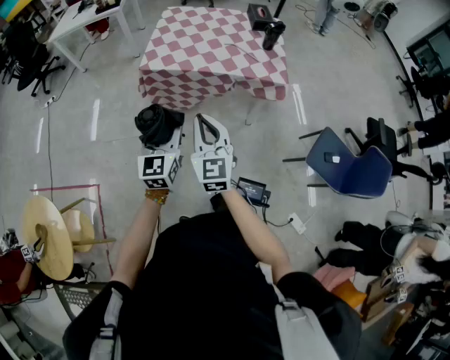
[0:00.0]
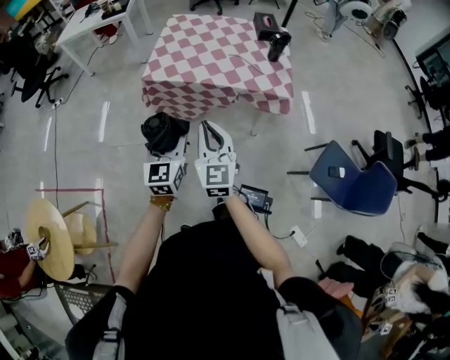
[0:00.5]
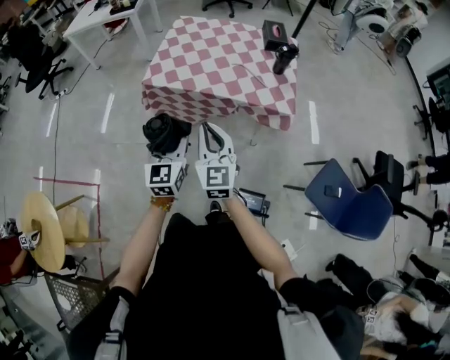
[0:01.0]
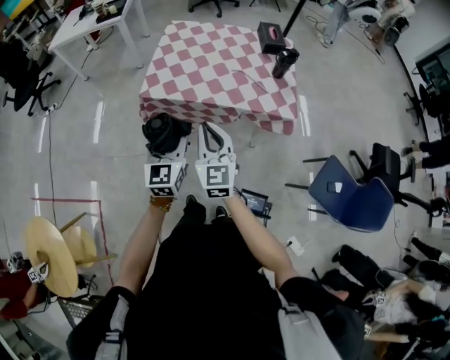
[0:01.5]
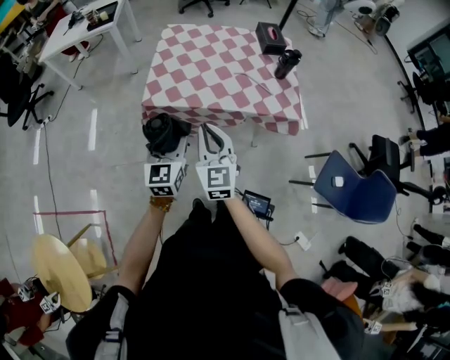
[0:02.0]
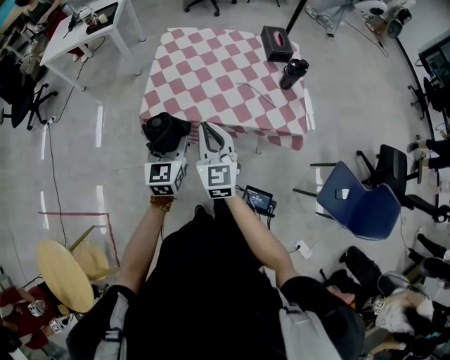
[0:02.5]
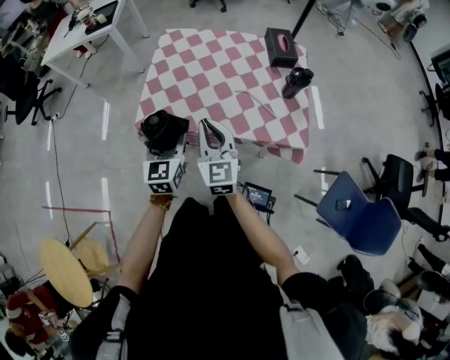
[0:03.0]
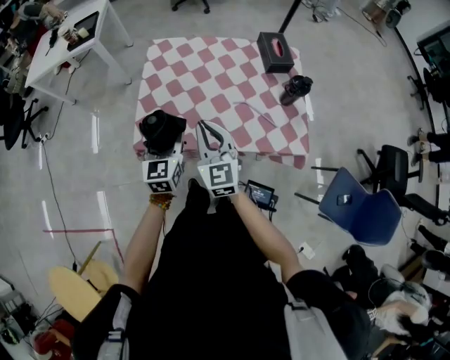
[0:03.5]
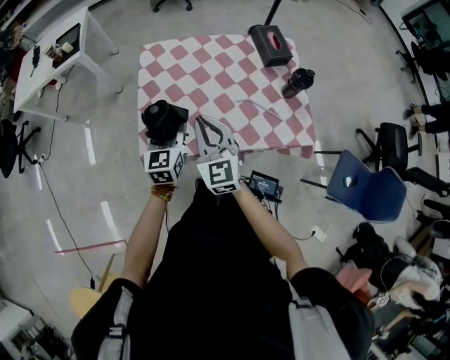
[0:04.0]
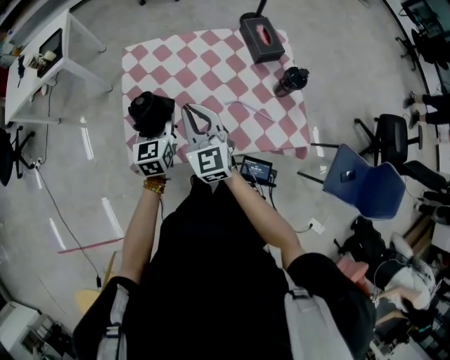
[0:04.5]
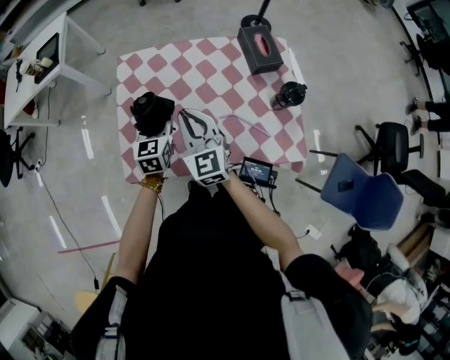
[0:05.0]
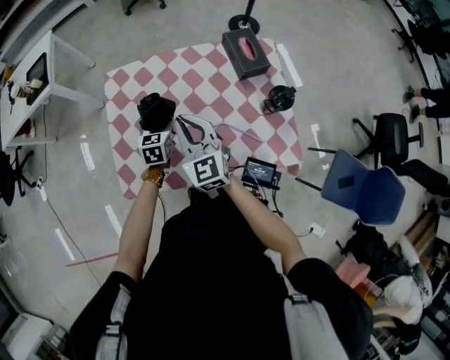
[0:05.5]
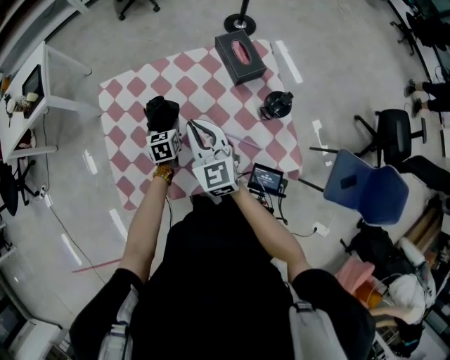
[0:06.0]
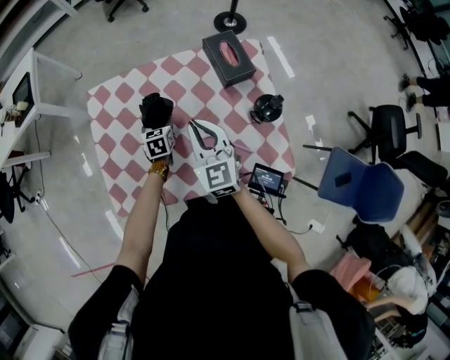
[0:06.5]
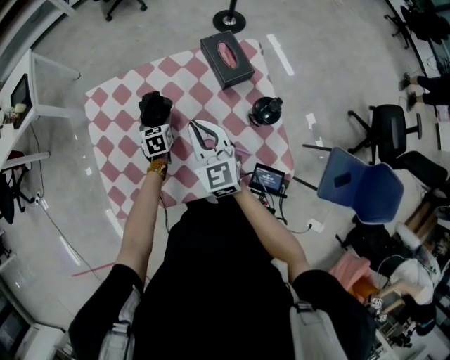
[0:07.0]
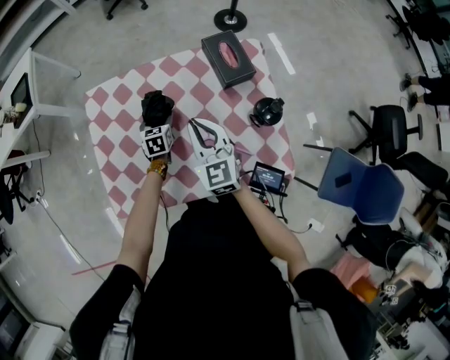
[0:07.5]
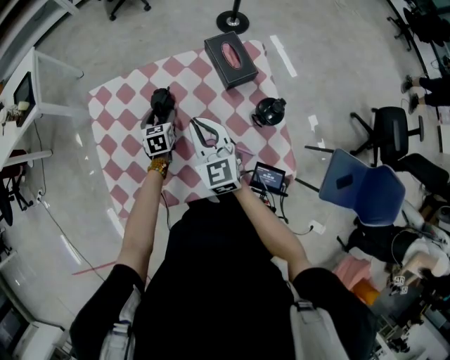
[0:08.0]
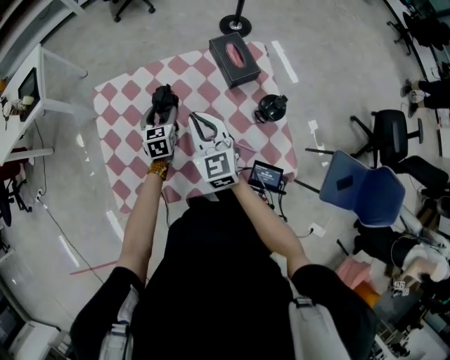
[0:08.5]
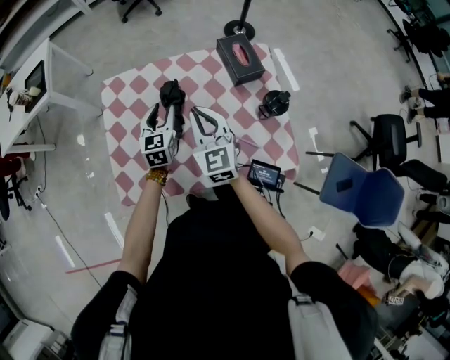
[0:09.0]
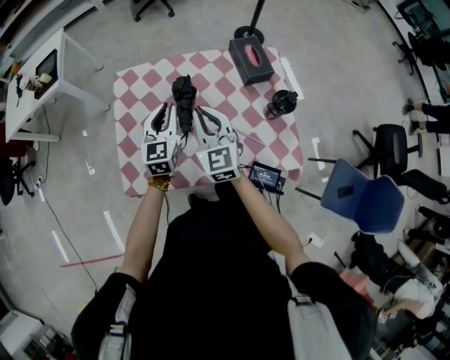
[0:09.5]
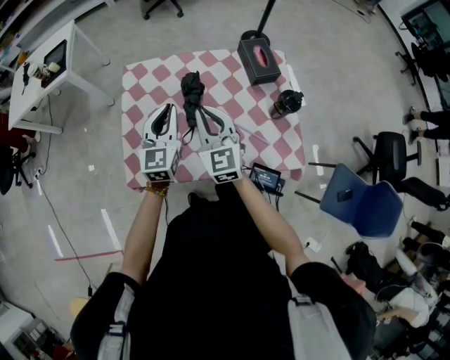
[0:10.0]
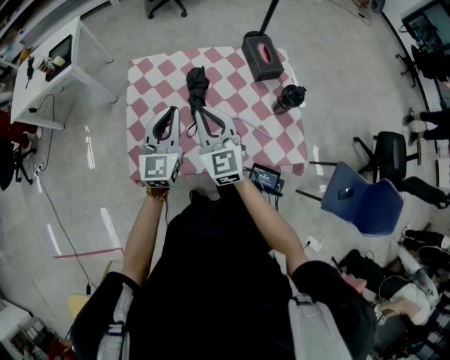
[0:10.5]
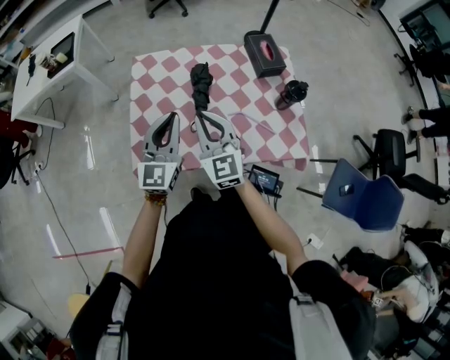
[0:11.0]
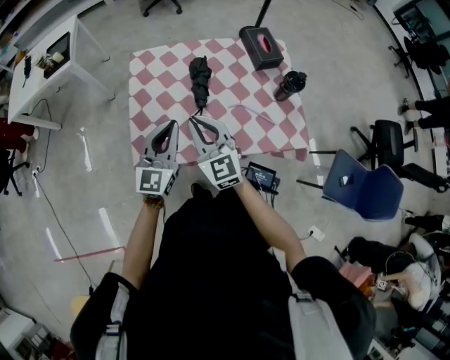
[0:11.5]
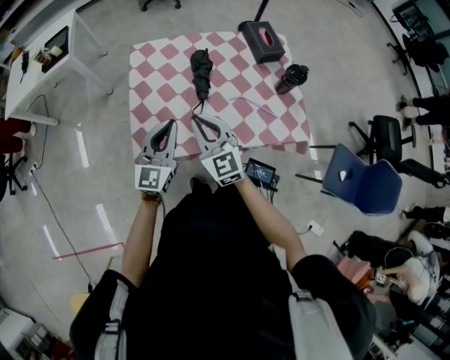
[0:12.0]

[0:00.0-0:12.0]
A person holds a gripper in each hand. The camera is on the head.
0:00.0 to 0:02.0: The two grippers go some 20 cm forward.
0:02.0 to 0:04.0: Both grippers travel together forward, some 30 cm.
0:04.0 to 0:06.0: The left gripper shifts about 35 cm forward, downward and to the right, and turns by roughly 30 degrees; the right gripper goes some 25 cm forward and to the right.
0:06.0 to 0:08.0: The left gripper shifts about 5 cm forward. Meanwhile the right gripper changes place by approximately 5 cm.
0:08.0 to 0:10.0: The right gripper shifts roughly 15 cm to the left, backward and upward; the left gripper goes some 30 cm upward and backward, tilts its fingers some 30 degrees upward, and closes its fingers.
0:10.0 to 0:12.0: Both grippers travel together backward and to the left, approximately 15 cm.

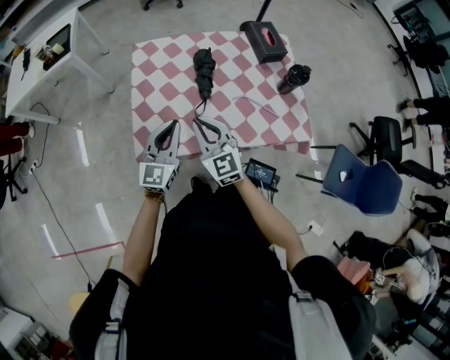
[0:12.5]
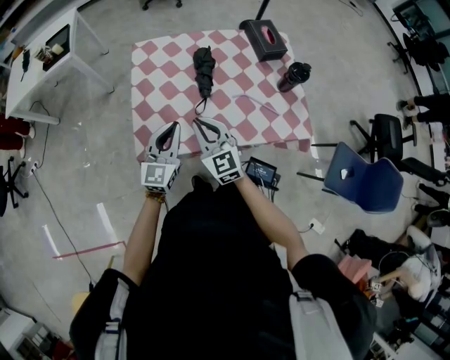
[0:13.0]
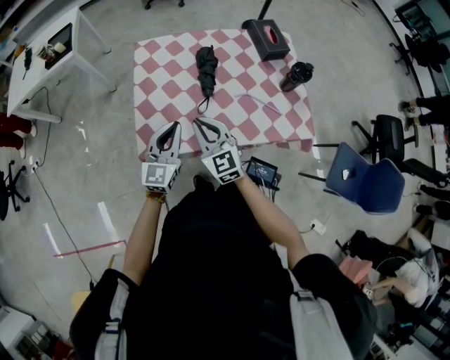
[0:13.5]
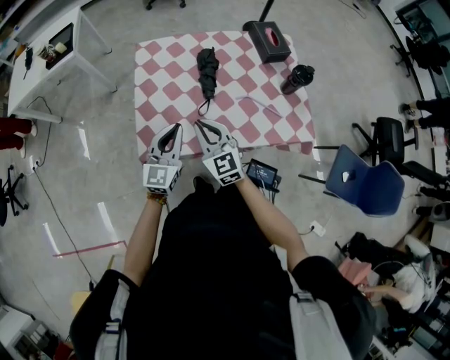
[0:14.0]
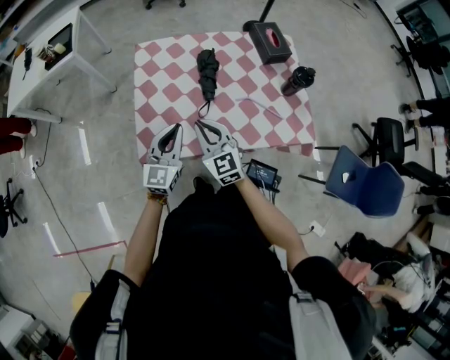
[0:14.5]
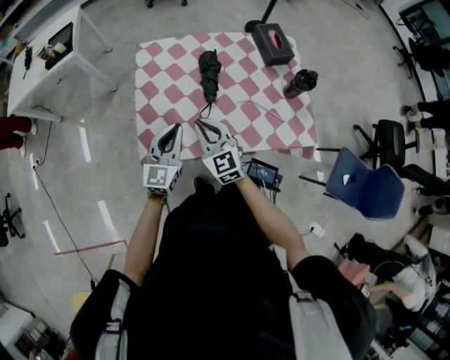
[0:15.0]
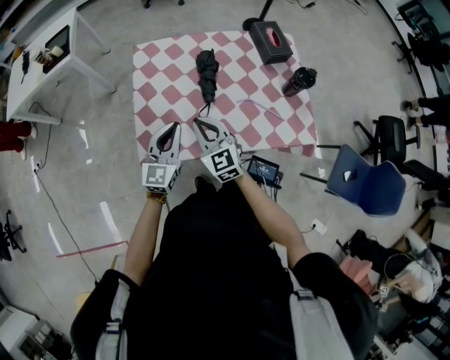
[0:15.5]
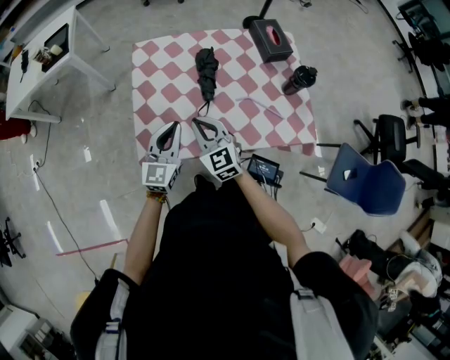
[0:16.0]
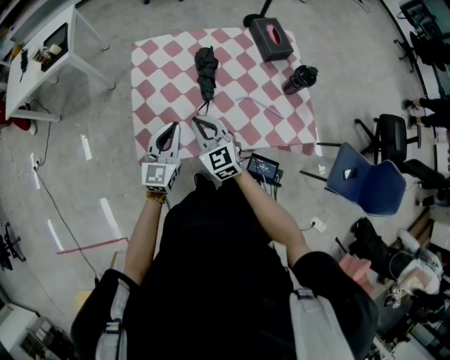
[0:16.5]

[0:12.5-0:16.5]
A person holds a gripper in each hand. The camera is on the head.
0:12.5 to 0:16.5: The grippers make only small movements.

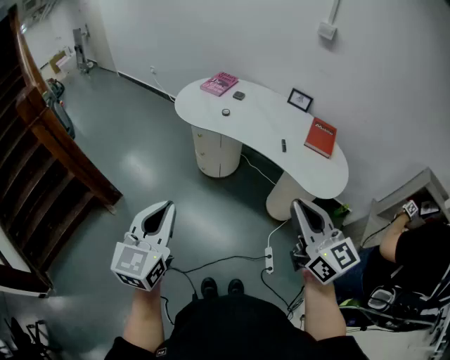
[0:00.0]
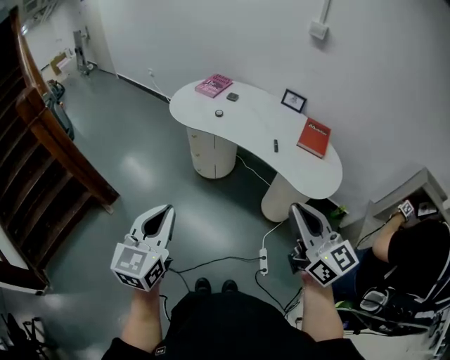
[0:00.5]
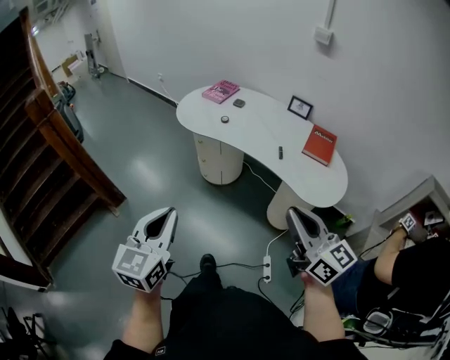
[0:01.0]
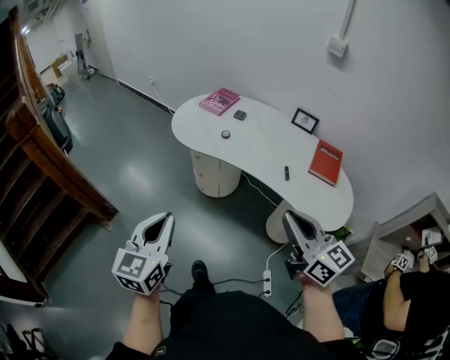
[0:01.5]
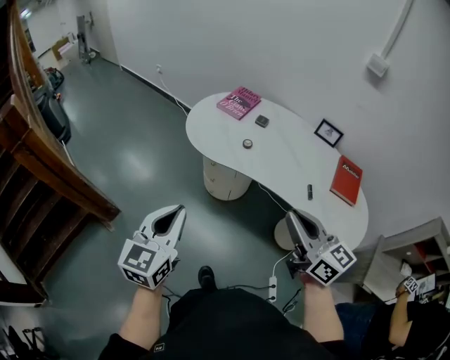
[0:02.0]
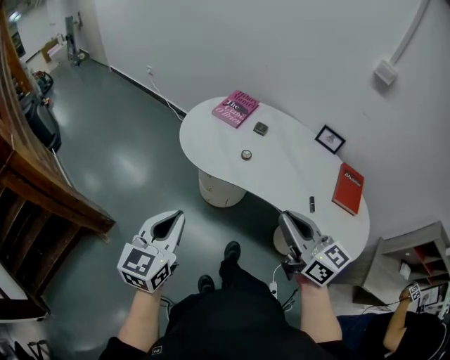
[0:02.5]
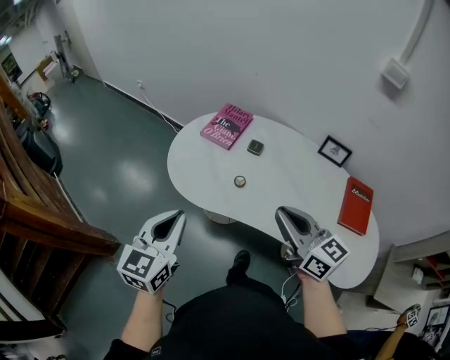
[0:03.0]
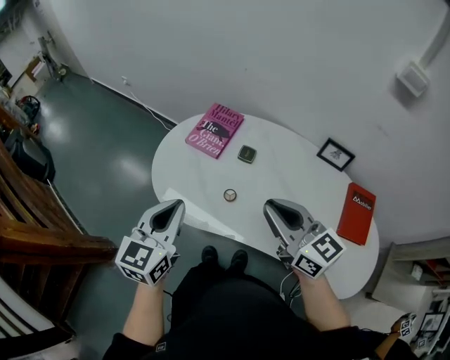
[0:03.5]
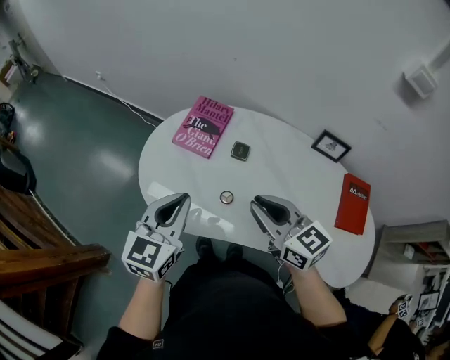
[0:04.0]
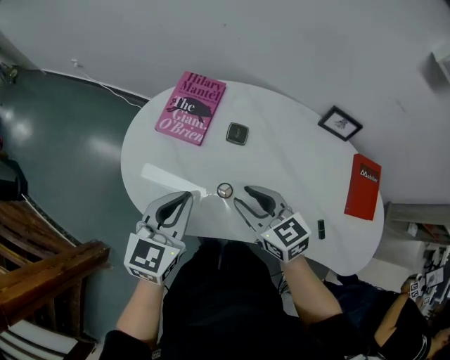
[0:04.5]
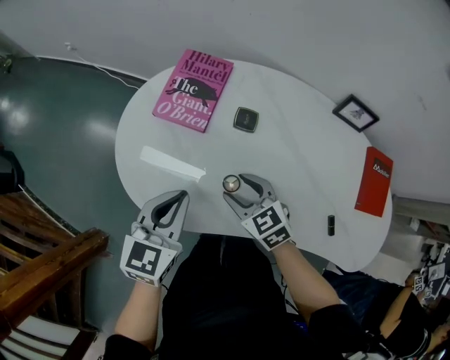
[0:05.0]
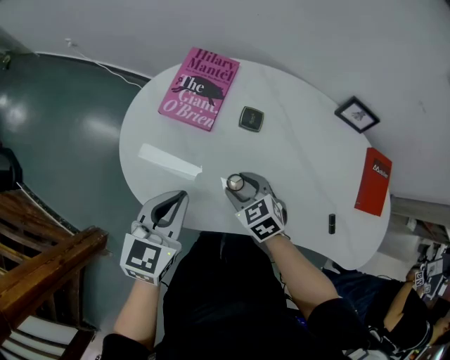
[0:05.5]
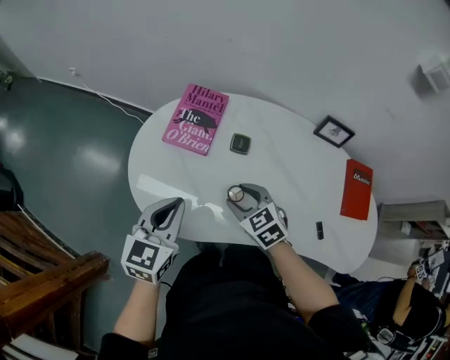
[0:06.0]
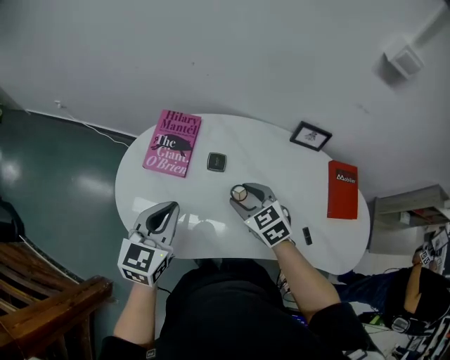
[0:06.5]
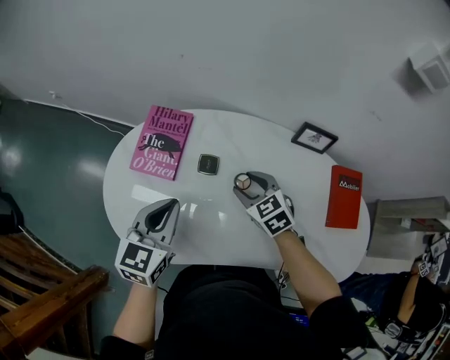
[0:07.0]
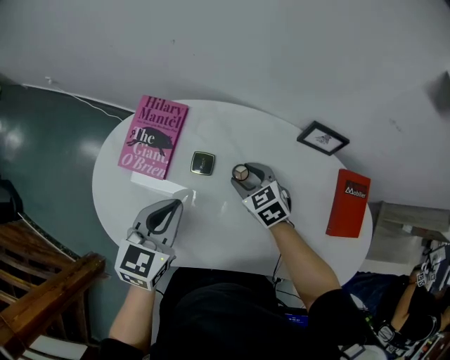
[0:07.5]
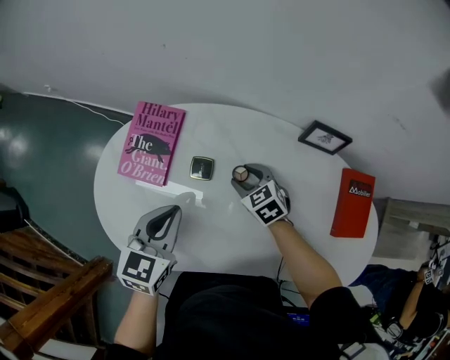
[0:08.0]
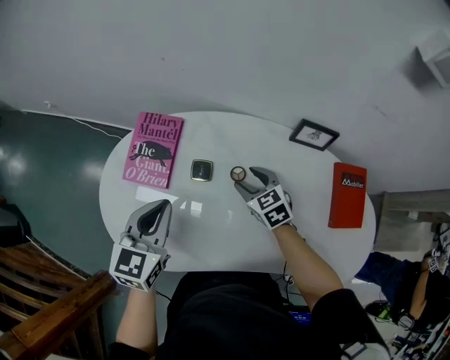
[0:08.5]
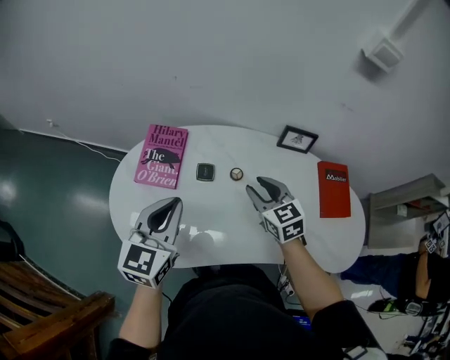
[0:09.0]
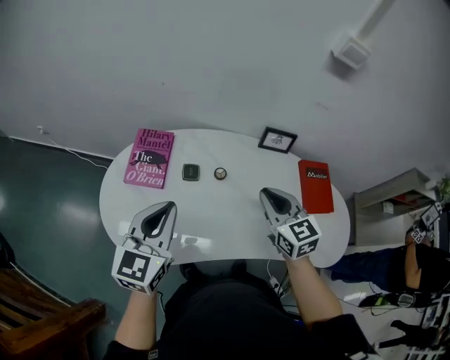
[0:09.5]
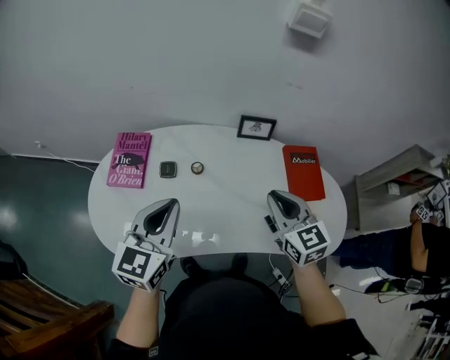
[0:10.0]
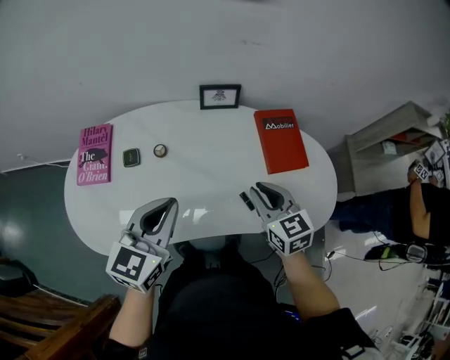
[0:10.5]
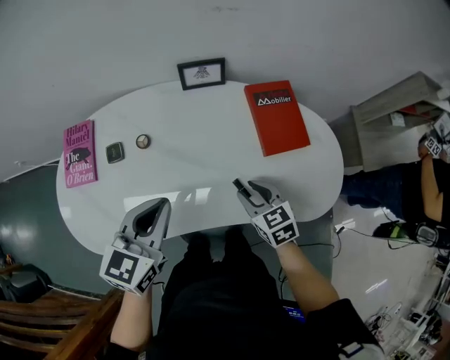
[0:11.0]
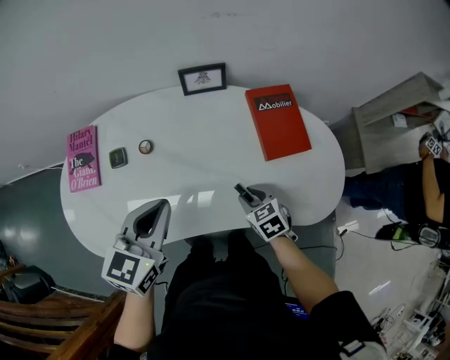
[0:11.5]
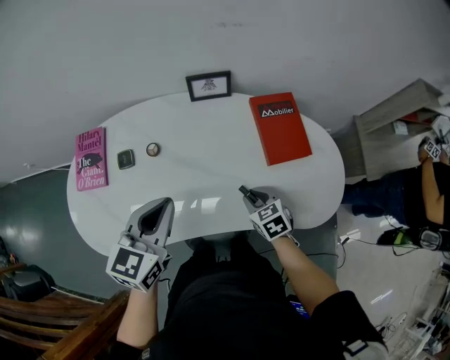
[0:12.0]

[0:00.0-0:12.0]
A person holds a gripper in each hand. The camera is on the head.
0:00.0 to 0:02.0: The grippers both shift forward by some 25 cm.
0:02.0 to 0:04.0: The two grippers go approximately 40 cm forward.
0:04.0 to 0:06.0: The right gripper goes some 20 cm downward, points its fingers roughly 30 degrees further downward, and opens its fingers, while the left gripper moves downward, approximately 10 cm.
0:06.0 to 0:08.0: The right gripper goes approximately 25 cm forward, to the right and downward, while the left gripper moves to the right and forward, approximately 15 cm.
0:08.0 to 0:10.0: The right gripper shifts approximately 40 cm upward, backward and to the right, tips its fingers upward by roughly 30 degrees, and closes its fingers; the left gripper shifts roughly 20 cm upward, backward and to the right, and changes its angle by roughly 20 degrees.
0:10.0 to 0:12.0: The right gripper is displaced downward by approximately 25 cm, and points its fingers approximately 30 degrees further downward; the left gripper goes approximately 15 cm to the right and downward.
